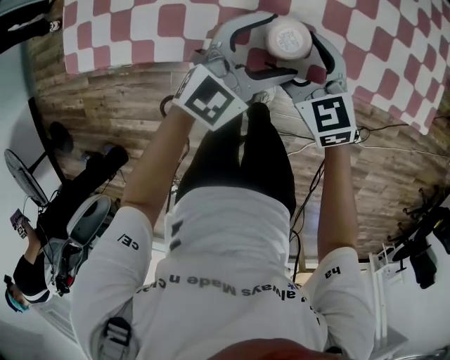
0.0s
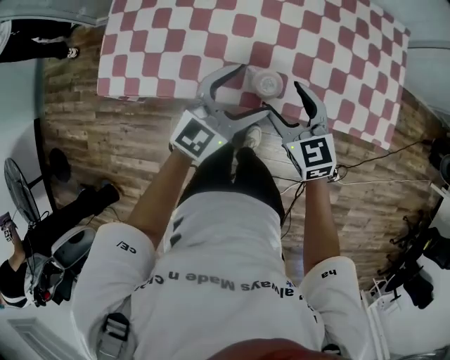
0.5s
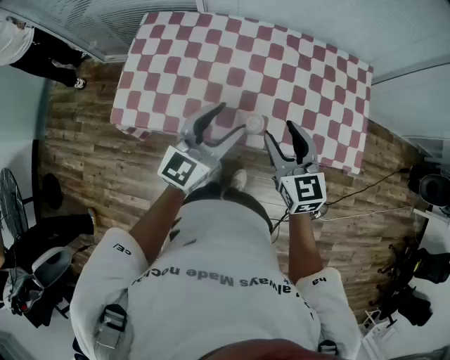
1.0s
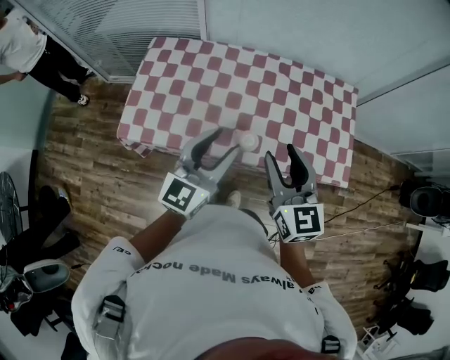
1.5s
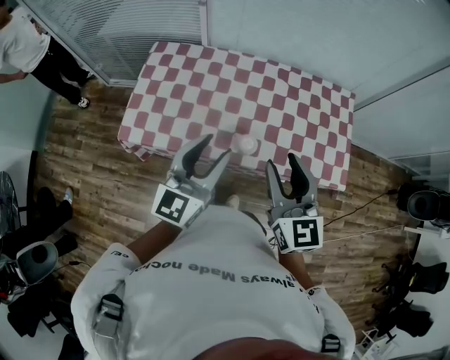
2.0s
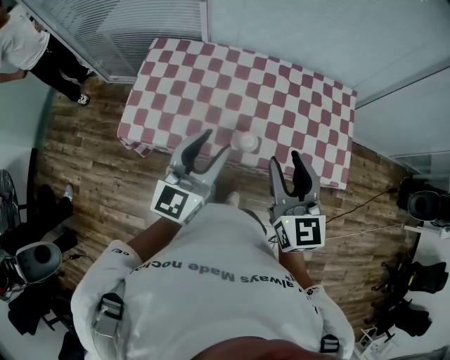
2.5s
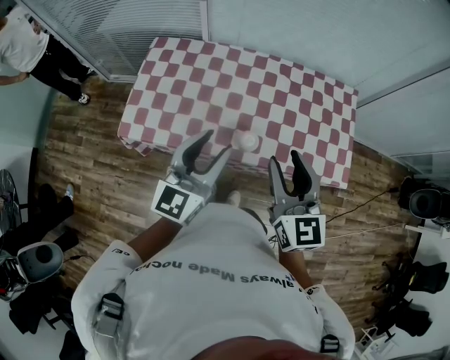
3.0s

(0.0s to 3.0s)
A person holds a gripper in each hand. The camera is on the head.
0.0s - 1.5s: The two grippers go about 40 cm upward. The left gripper rotates roughly 30 degrees, and closes its fingers. Meanwhile the right gripper turns by some 30 degrees, and closes.
1.5s - 3.0s: The grippers stay close to where they were, moving slightly.

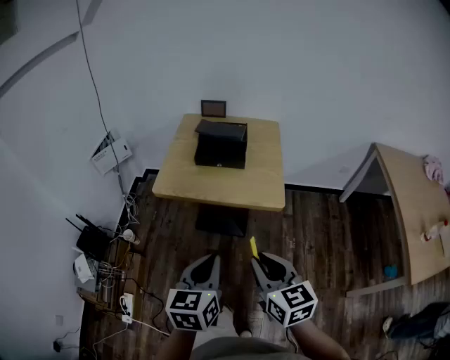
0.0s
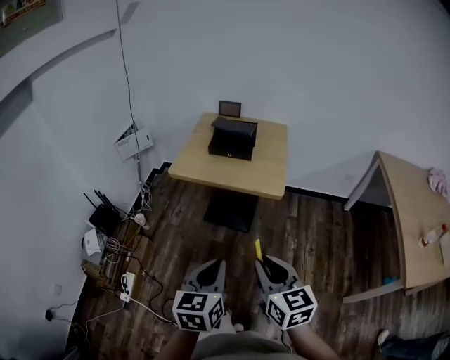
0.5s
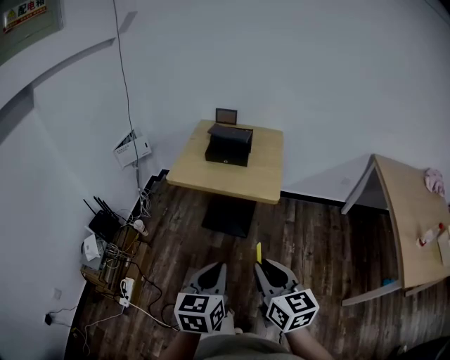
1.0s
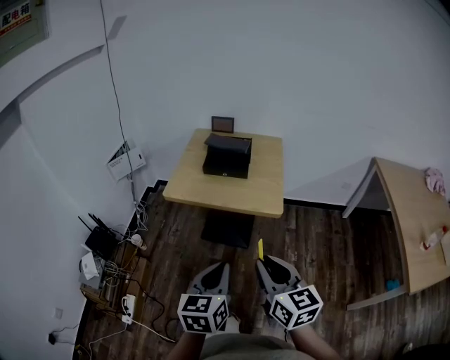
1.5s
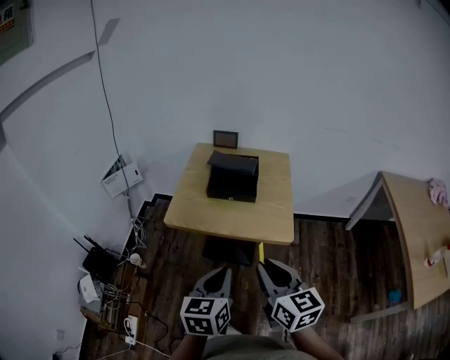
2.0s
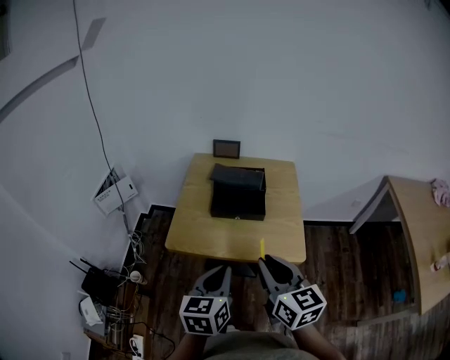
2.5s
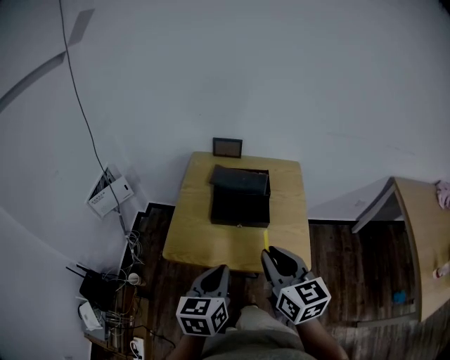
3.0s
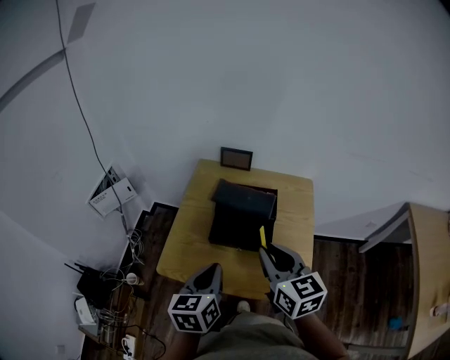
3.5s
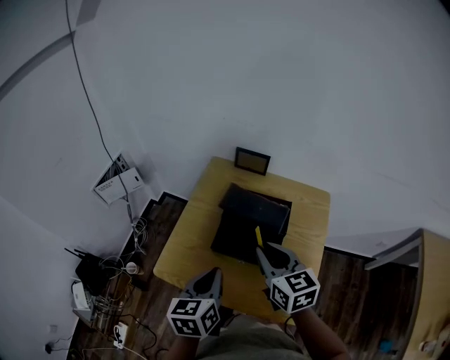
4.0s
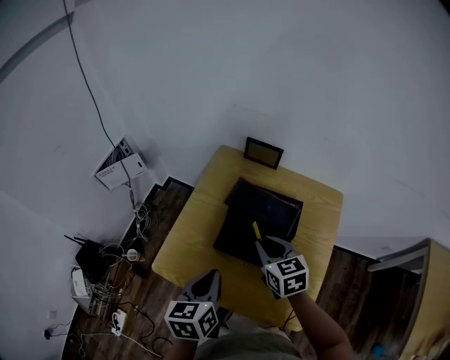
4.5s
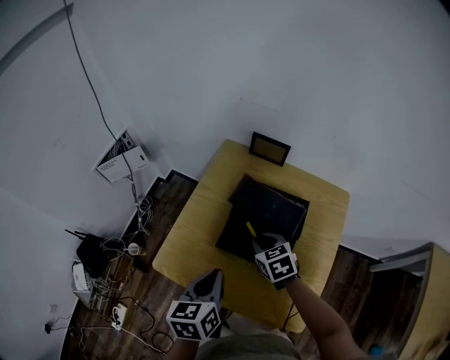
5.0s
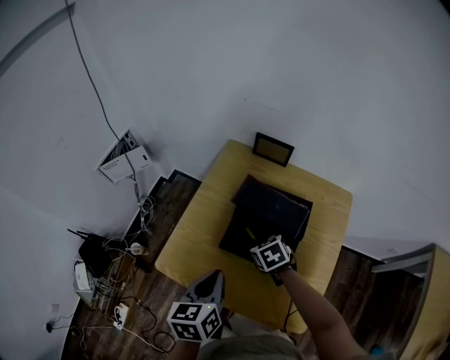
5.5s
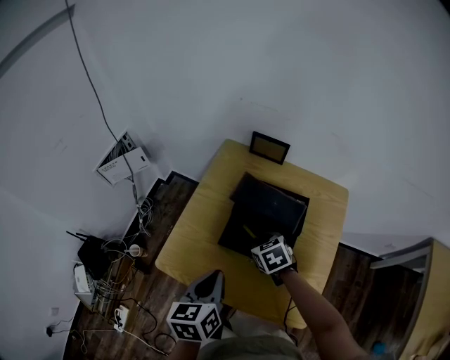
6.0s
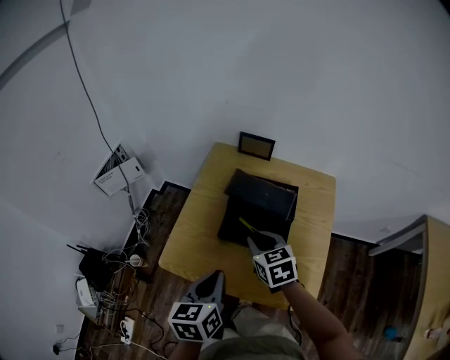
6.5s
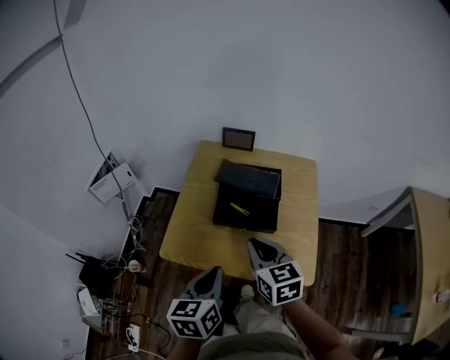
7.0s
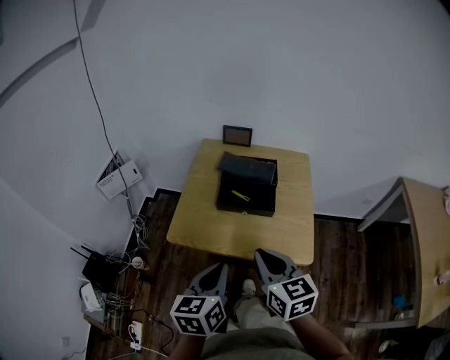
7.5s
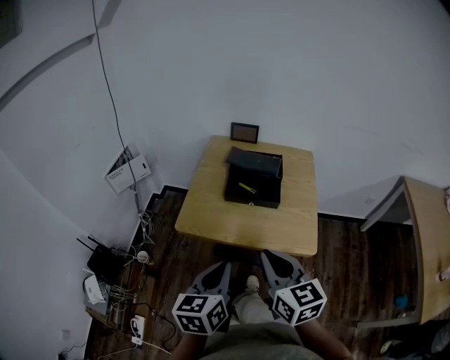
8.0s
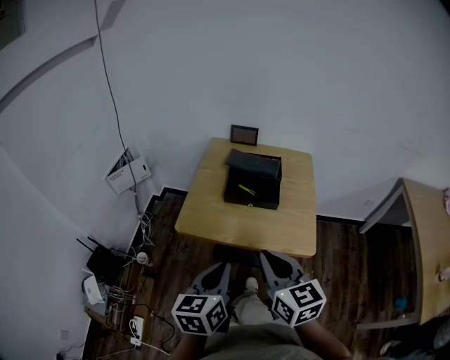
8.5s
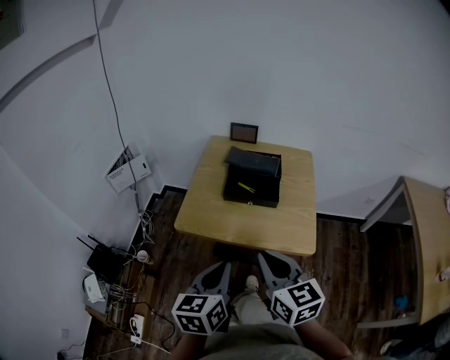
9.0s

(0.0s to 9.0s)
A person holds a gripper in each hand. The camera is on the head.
0.0s - 2.0s: The right gripper shifts some 5 cm upward, and moves roughly 15 cm backward and comes back, while the left gripper reaches about 15 cm backward, then returns.
2.0s - 4.5s: Both grippers travel together forward, about 40 cm. The right gripper rotates some 30 degrees. Meanwhile the left gripper changes its angle by some 20 degrees.
4.5s - 7.0s: The grippers both shift backward by some 15 cm. The right gripper moves roughly 15 cm downward and comes back.
7.0s - 9.0s: Both grippers travel together backward, about 15 cm.

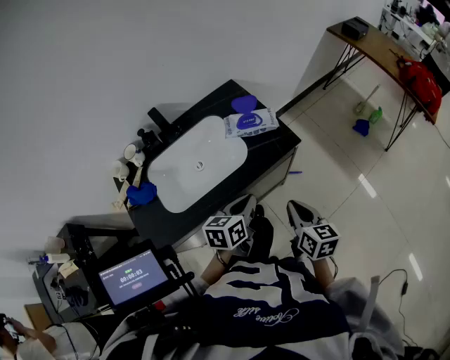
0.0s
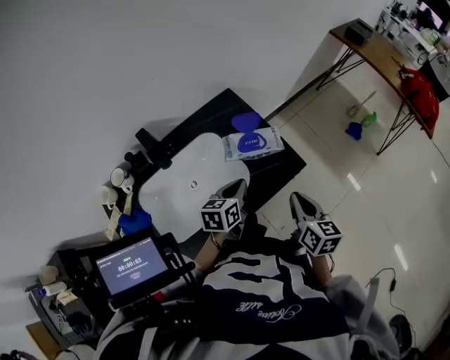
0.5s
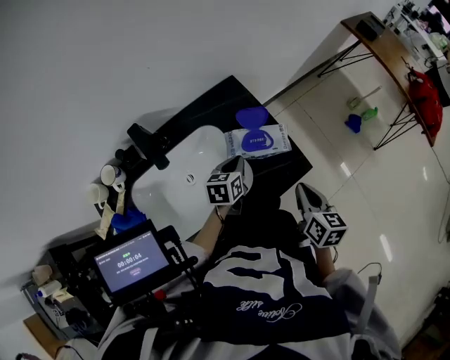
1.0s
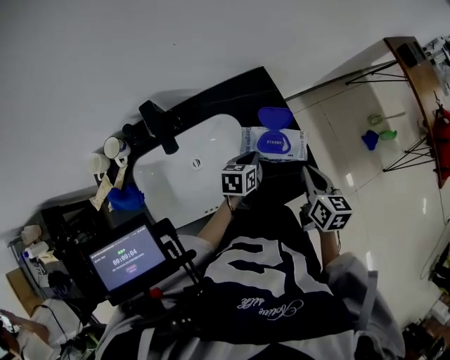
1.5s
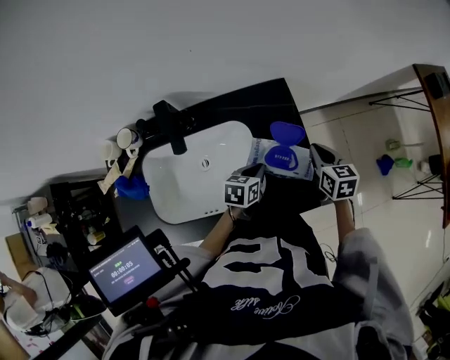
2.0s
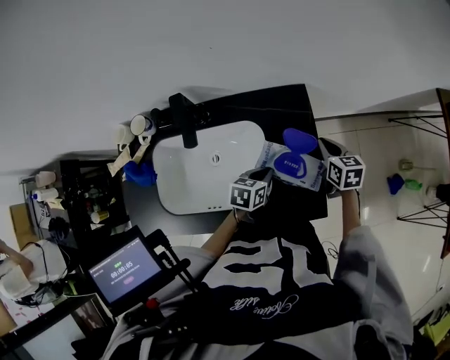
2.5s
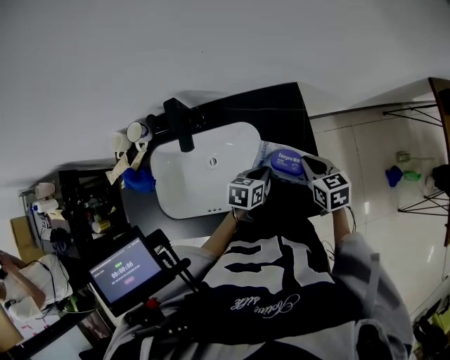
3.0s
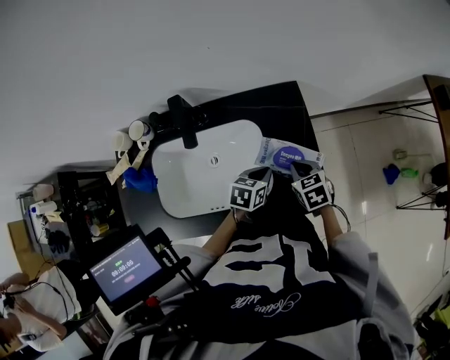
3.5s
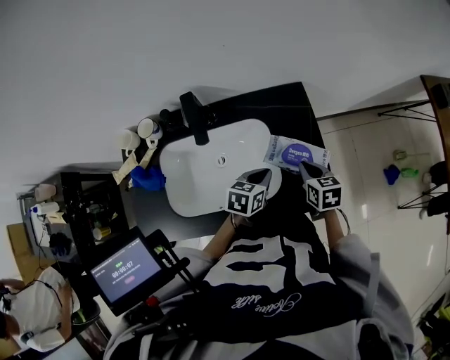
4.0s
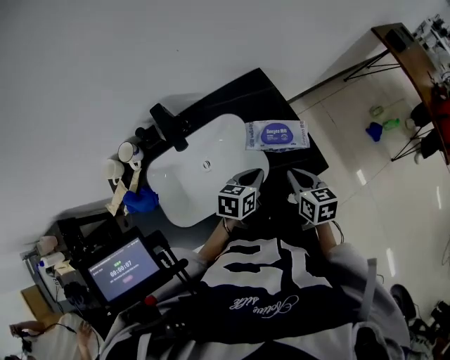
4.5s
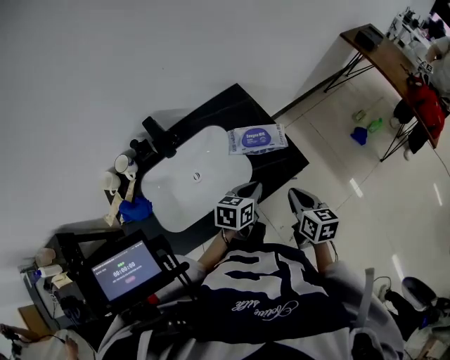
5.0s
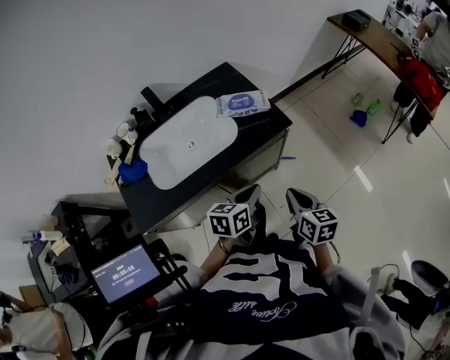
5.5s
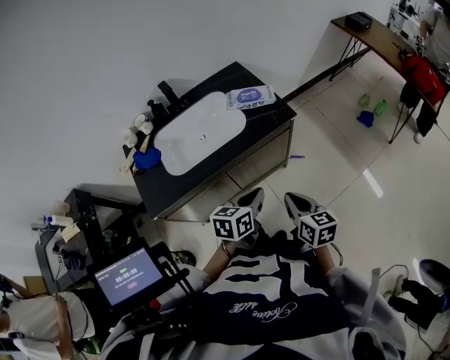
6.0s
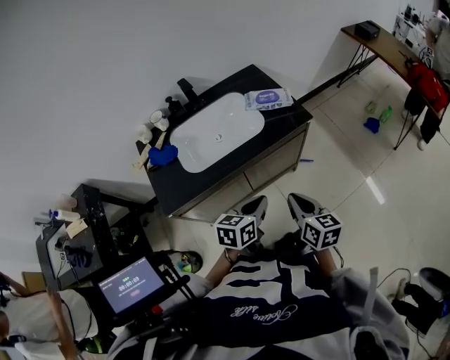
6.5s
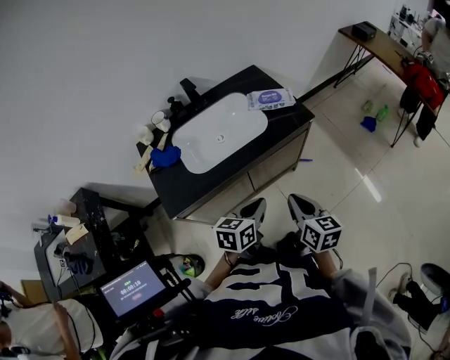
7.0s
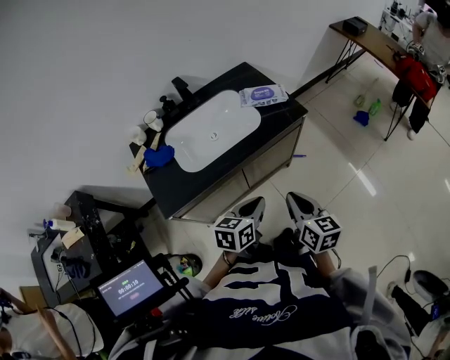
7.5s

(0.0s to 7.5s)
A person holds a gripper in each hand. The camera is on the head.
0.0s - 2.0s: The left gripper heads forward and downward, covering approximately 30 cm. Meanwhile the right gripper shifts roughly 40 cm forward, and turns by about 30 degrees.
2.0s - 4.0s: The right gripper heads to the left and backward, covering some 10 cm; the left gripper is displaced upward by some 5 cm.
4.0s - 5.5s: The left gripper goes approximately 30 cm backward and to the right, while the right gripper is displaced backward by some 35 cm, and rotates some 30 degrees.
5.5s - 7.5s: The left gripper is displaced backward and to the left by about 15 cm. Meanwhile the right gripper shifts about 15 cm backward, to the left and upward.

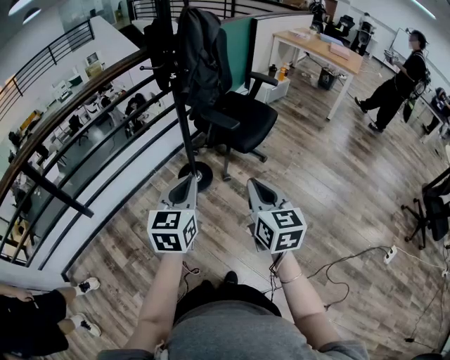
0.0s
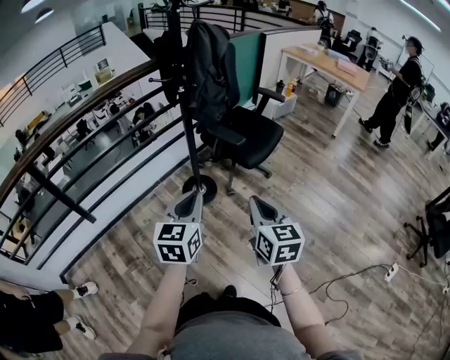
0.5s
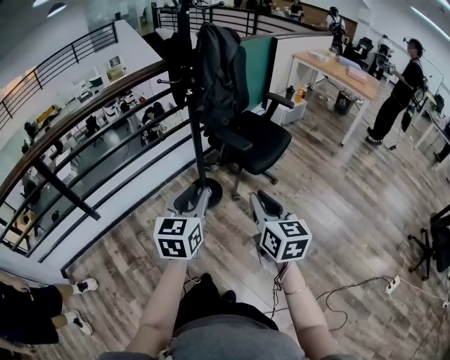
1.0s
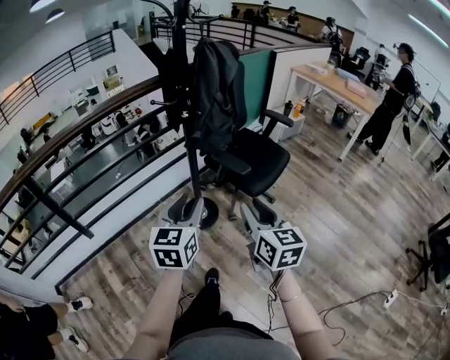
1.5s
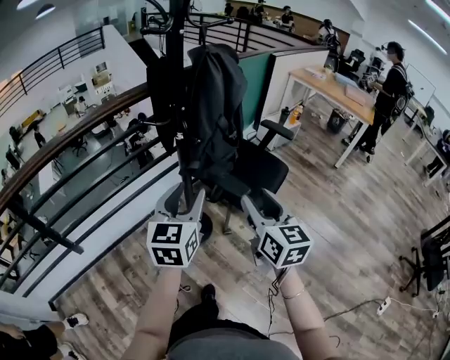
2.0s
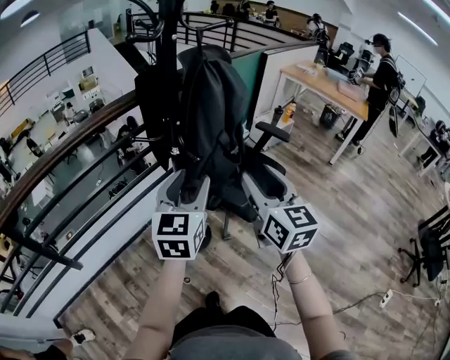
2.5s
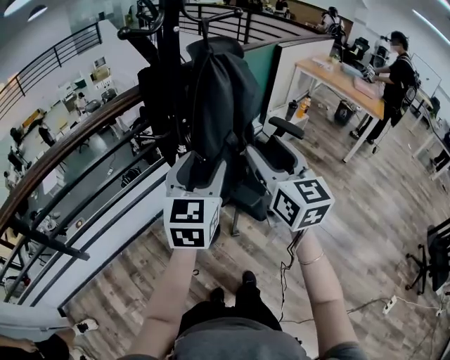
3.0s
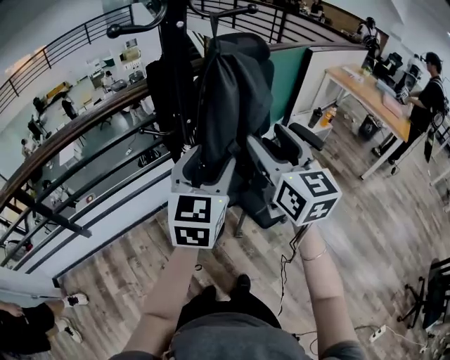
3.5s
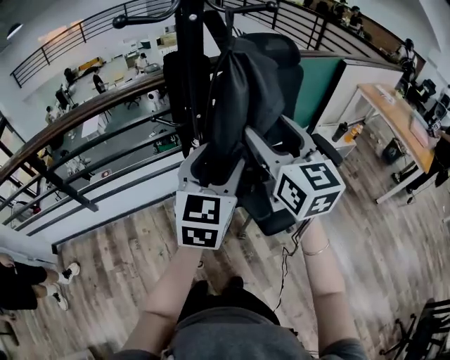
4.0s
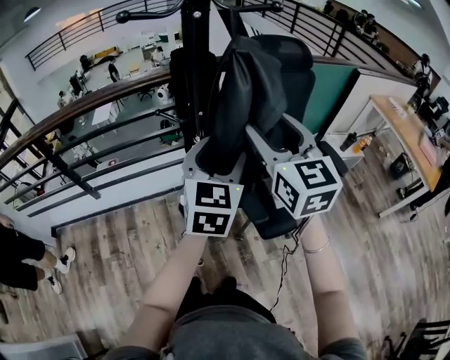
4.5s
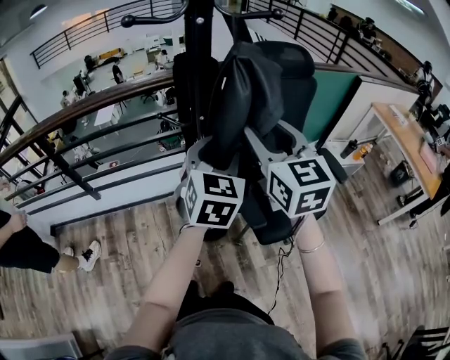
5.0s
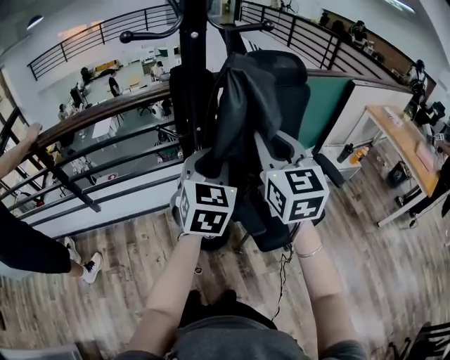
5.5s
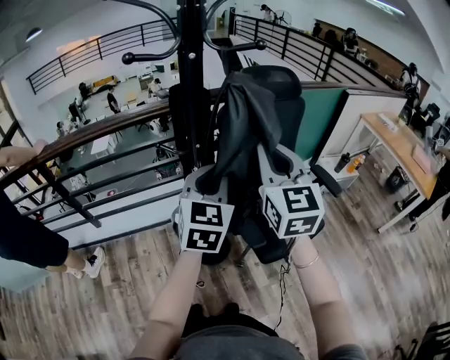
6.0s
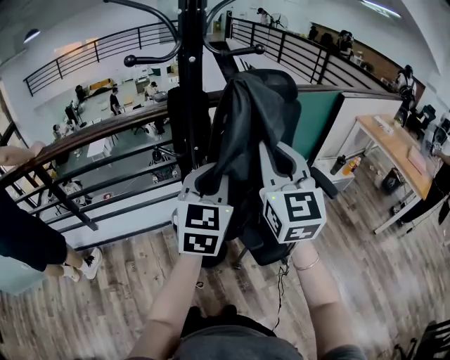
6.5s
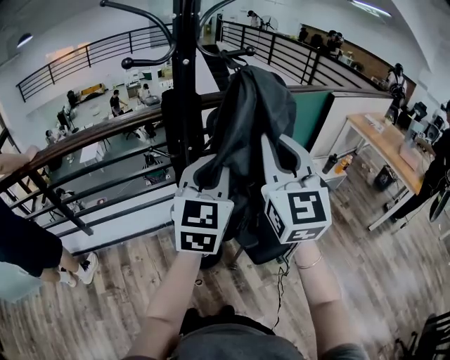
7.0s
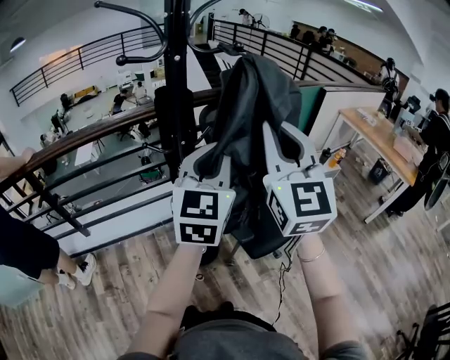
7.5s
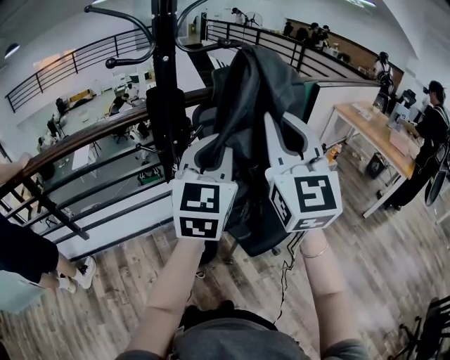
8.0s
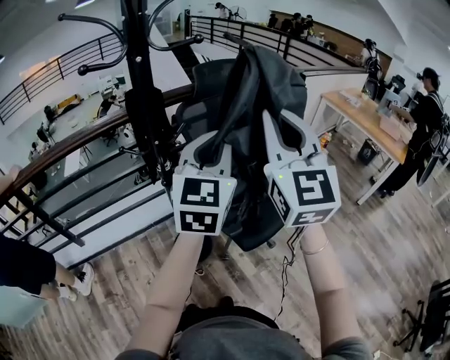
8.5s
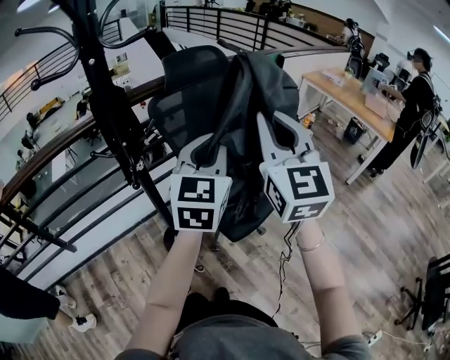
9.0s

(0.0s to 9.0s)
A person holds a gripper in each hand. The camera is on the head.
0.0s - 2.0s: The two grippers go roughly 25 cm forward. The right gripper opens up; the left gripper opens.
2.0s - 4.5s: The left gripper moves approximately 20 cm, and turns by some 30 degrees, while the right gripper moves roughly 25 cm, and rotates roughly 30 degrees.
4.5s - 7.0s: The grippers both shift upward by roughly 10 cm. The right gripper changes its angle by approximately 20 degrees, and closes its fingers, while the left gripper closes its fingers.
7.0s - 9.0s: Both grippers travel together to the right, roughly 15 cm.
